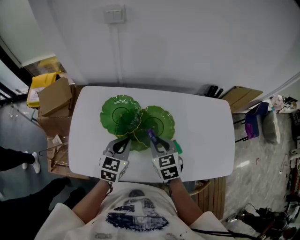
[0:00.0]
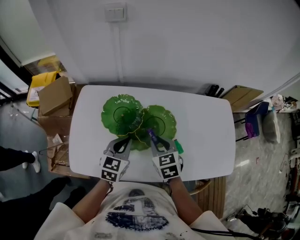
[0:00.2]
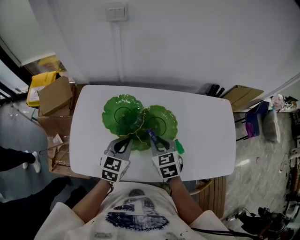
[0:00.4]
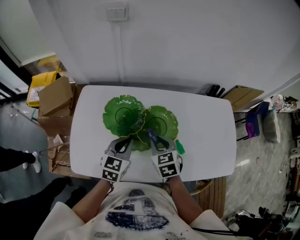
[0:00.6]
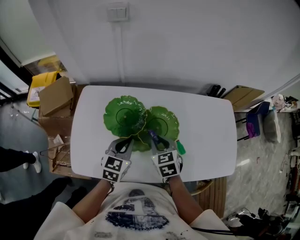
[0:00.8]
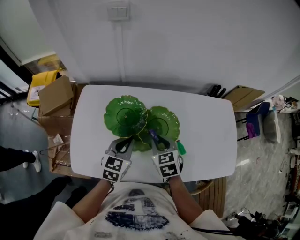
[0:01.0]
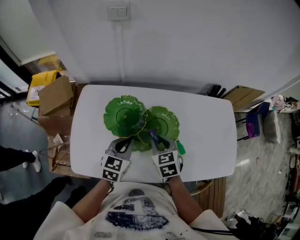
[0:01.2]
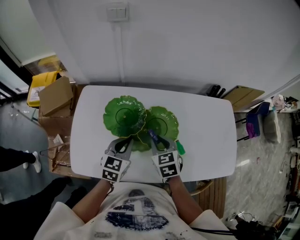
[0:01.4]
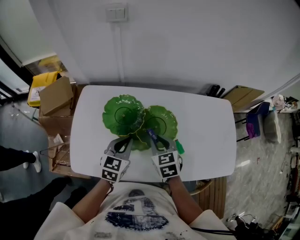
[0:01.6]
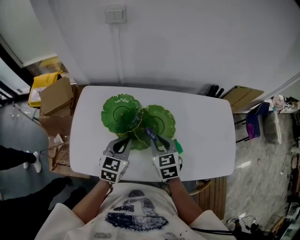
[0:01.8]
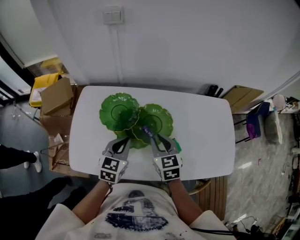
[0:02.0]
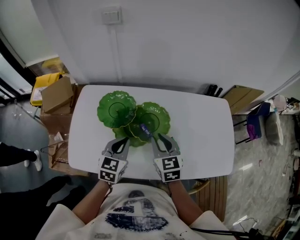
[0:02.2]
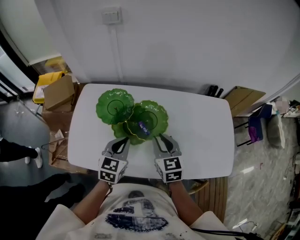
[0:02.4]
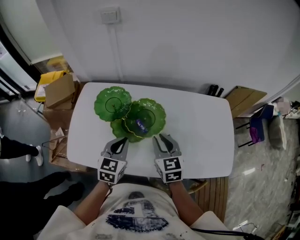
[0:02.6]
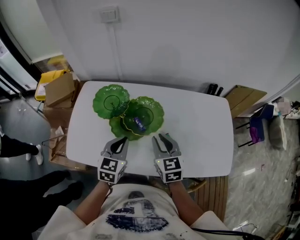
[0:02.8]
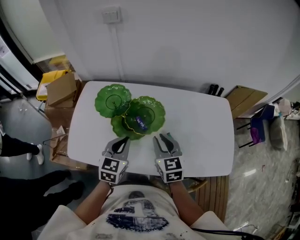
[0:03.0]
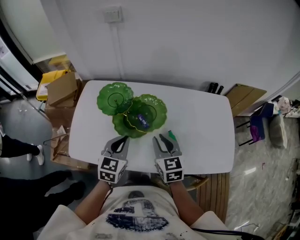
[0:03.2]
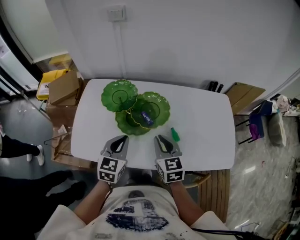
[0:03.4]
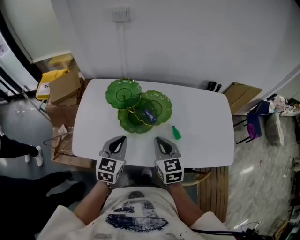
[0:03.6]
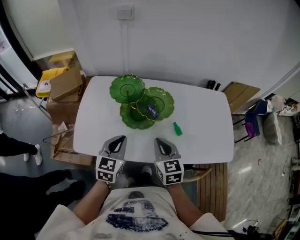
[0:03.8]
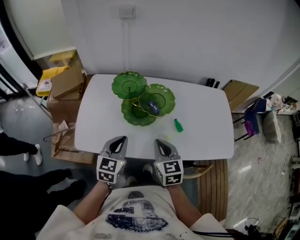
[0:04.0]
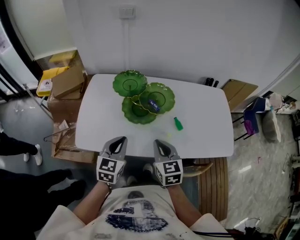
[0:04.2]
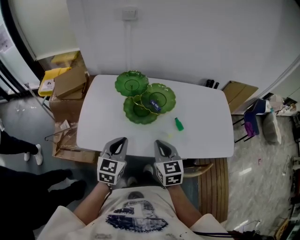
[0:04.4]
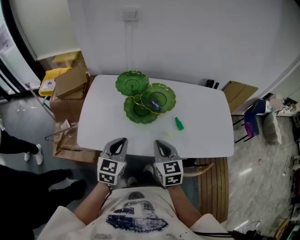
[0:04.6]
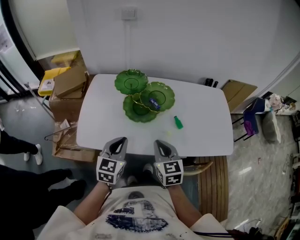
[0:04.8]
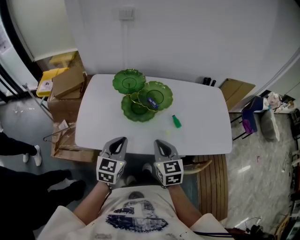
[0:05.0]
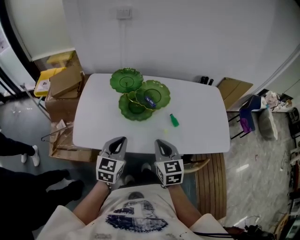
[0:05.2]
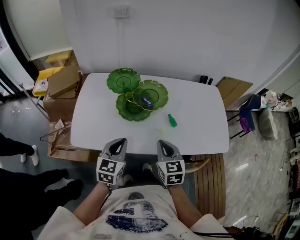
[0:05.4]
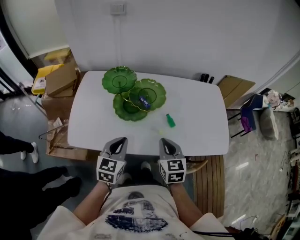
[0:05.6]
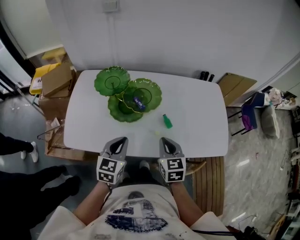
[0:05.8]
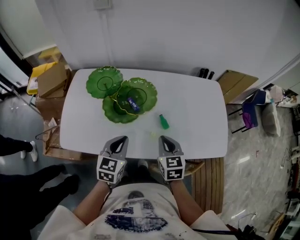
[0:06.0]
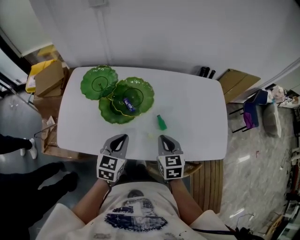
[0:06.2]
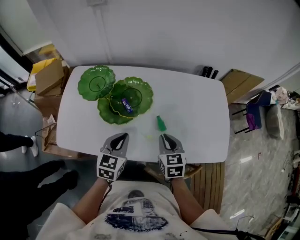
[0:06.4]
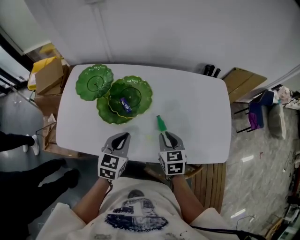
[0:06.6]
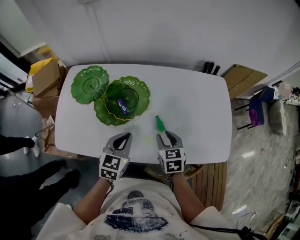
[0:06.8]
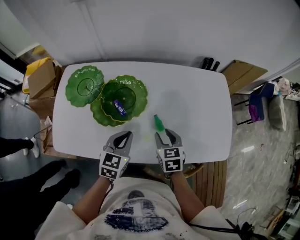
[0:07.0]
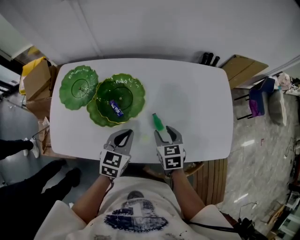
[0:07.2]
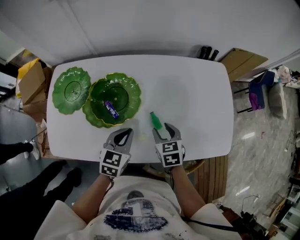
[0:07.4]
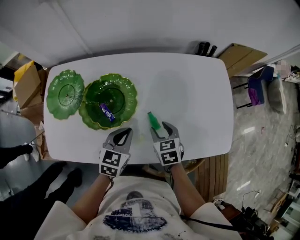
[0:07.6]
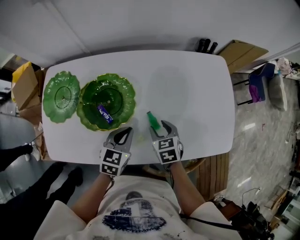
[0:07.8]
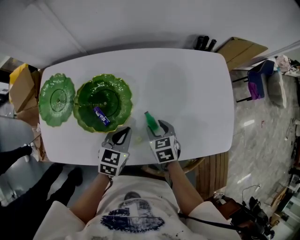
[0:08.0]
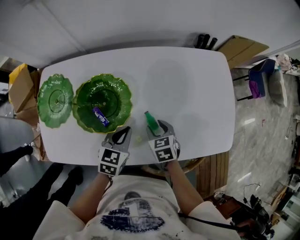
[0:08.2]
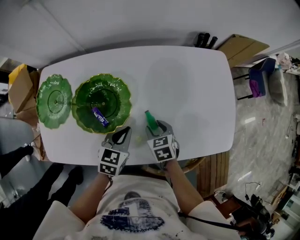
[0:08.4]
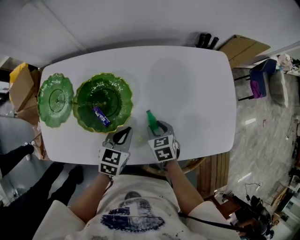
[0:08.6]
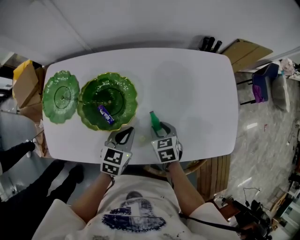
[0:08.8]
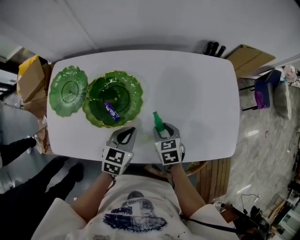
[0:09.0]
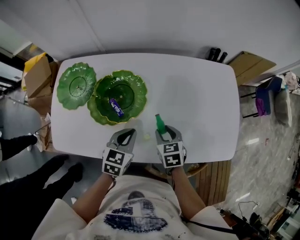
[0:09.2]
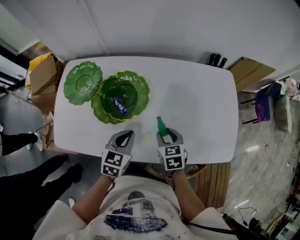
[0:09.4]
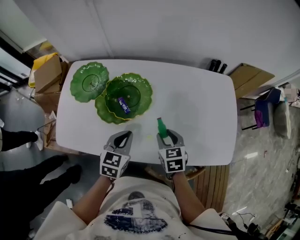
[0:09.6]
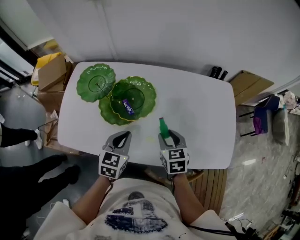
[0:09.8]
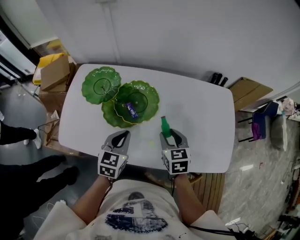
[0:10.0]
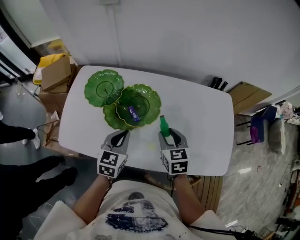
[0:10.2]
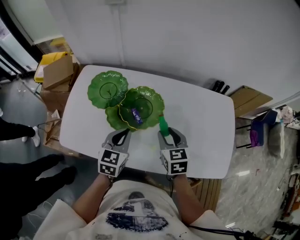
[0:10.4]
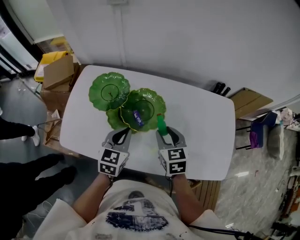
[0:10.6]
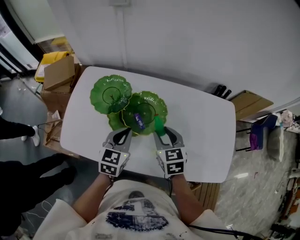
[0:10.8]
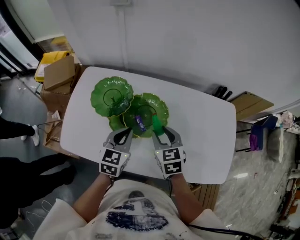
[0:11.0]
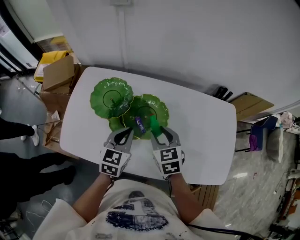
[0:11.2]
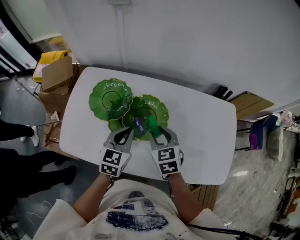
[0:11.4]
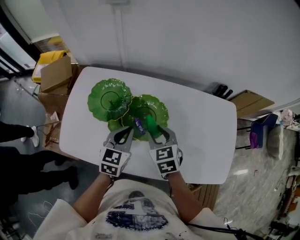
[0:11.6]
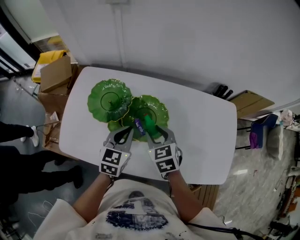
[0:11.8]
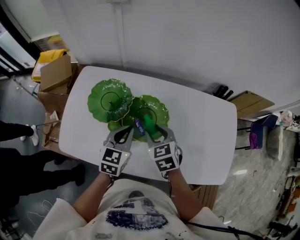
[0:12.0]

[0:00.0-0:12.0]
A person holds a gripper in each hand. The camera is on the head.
0:00.0 to 0:01.6: The grippers make only small movements.
0:01.6 to 0:03.0: The left gripper moves backward and to the right, some 10 cm; the right gripper travels to the right and backward by about 10 cm.
0:03.0 to 0:04.4: Both grippers travel together backward and to the left, approximately 15 cm. The right gripper closes up.
0:04.4 to 0:06.0: The left gripper is displaced to the right and forward by about 15 cm. Meanwhile the right gripper is displaced to the right, forward and downward by approximately 15 cm.
0:06.0 to 0:07.6: The left gripper goes approximately 15 cm forward, downward and to the right. Meanwhile the right gripper is displaced downward and forward by some 15 cm, and opens.
0:07.6 to 0:09.0: The grippers stay close to where they were, moving slightly.
0:09.0 to 0:10.4: The left gripper shifts approximately 15 cm to the left and upward, and turns by roughly 20 degrees; the right gripper shifts roughly 15 cm upward.
0:10.4 to 0:12.0: The right gripper moves to the left and forward, approximately 10 cm, while the left gripper heads forward, covering roughly 5 cm.

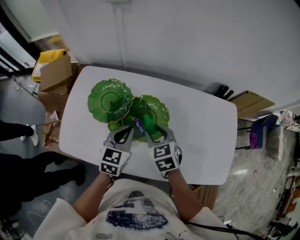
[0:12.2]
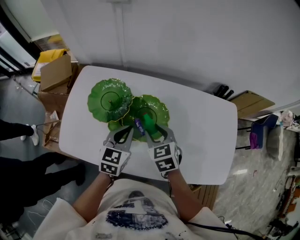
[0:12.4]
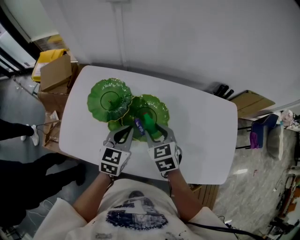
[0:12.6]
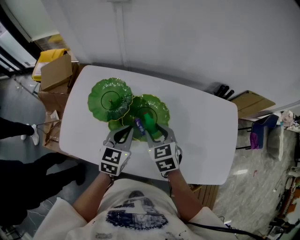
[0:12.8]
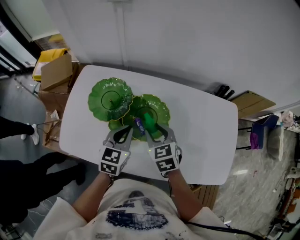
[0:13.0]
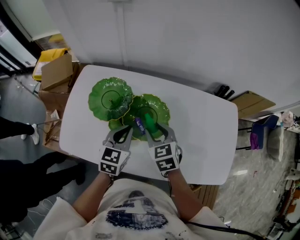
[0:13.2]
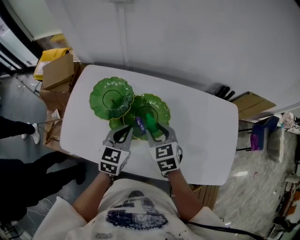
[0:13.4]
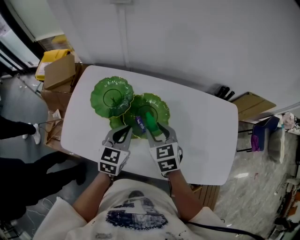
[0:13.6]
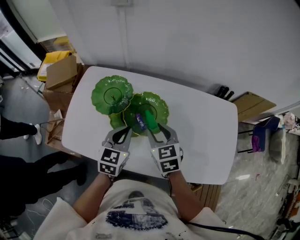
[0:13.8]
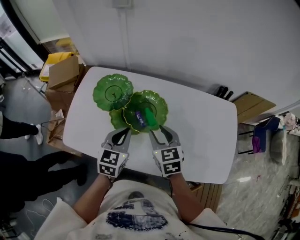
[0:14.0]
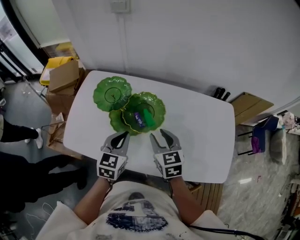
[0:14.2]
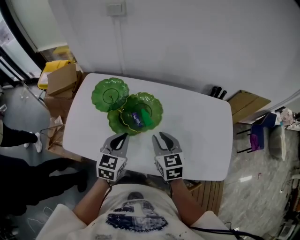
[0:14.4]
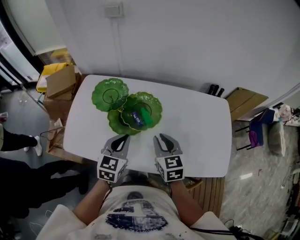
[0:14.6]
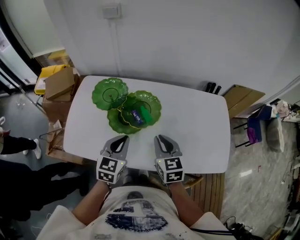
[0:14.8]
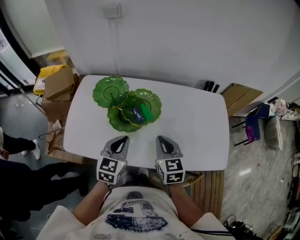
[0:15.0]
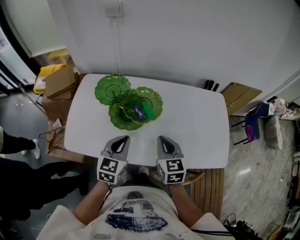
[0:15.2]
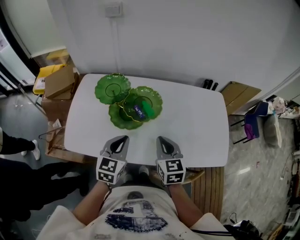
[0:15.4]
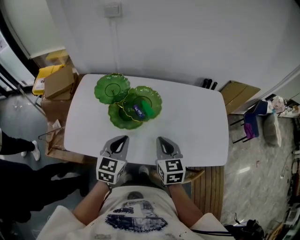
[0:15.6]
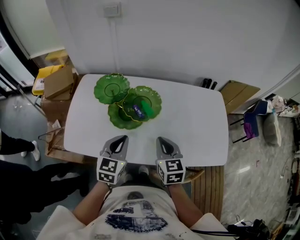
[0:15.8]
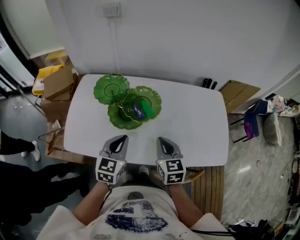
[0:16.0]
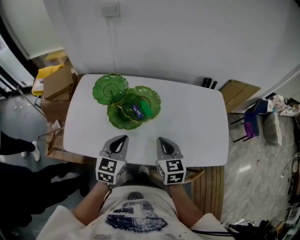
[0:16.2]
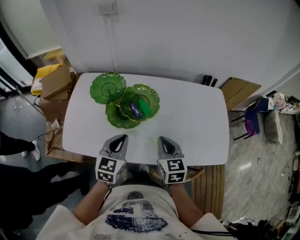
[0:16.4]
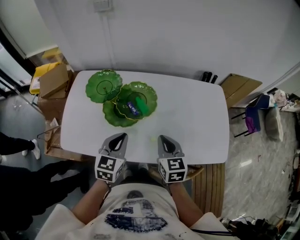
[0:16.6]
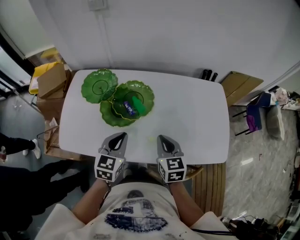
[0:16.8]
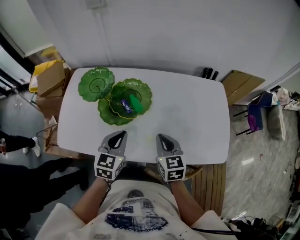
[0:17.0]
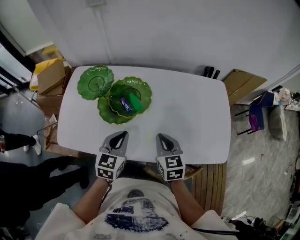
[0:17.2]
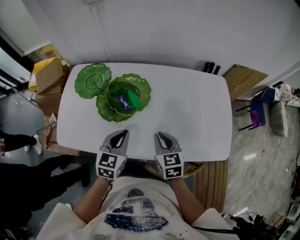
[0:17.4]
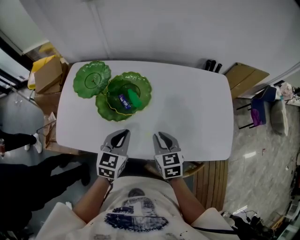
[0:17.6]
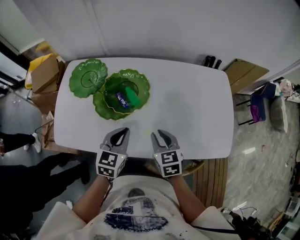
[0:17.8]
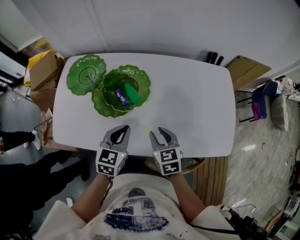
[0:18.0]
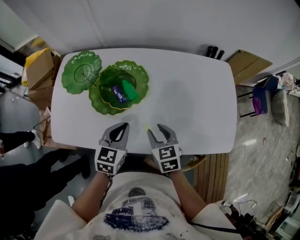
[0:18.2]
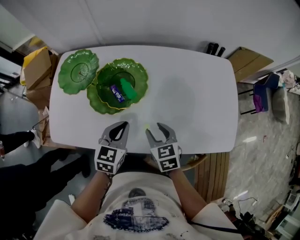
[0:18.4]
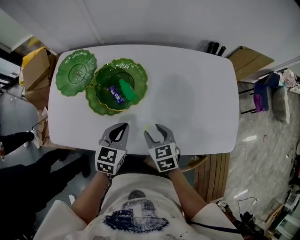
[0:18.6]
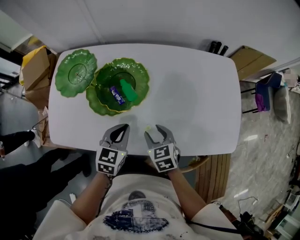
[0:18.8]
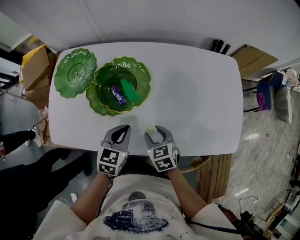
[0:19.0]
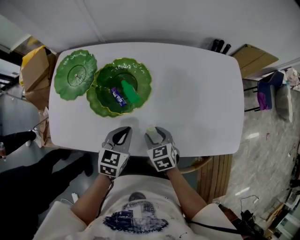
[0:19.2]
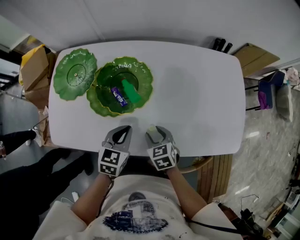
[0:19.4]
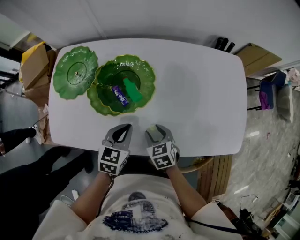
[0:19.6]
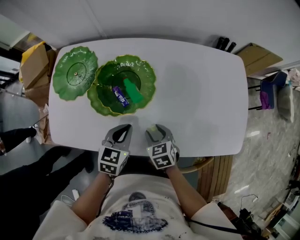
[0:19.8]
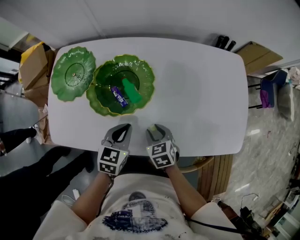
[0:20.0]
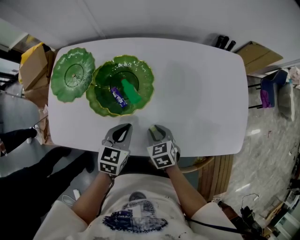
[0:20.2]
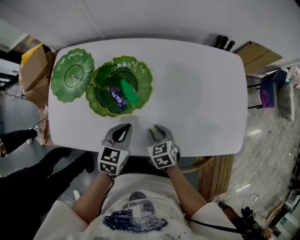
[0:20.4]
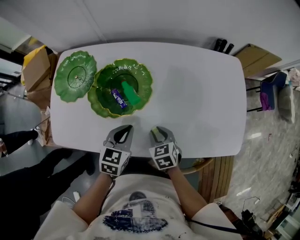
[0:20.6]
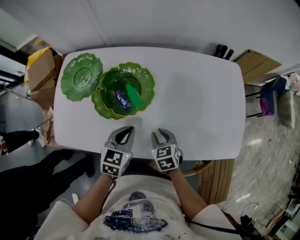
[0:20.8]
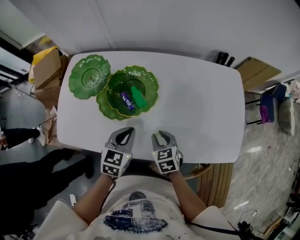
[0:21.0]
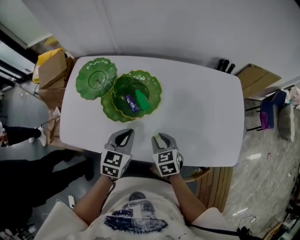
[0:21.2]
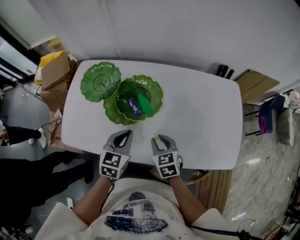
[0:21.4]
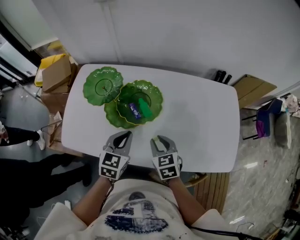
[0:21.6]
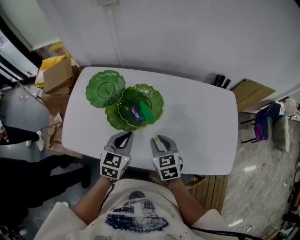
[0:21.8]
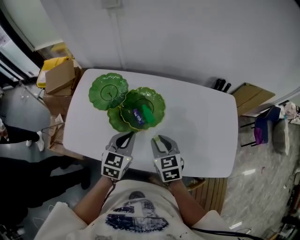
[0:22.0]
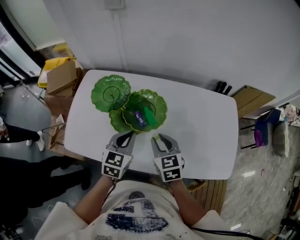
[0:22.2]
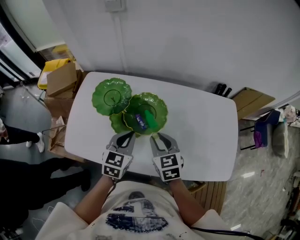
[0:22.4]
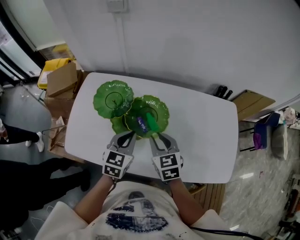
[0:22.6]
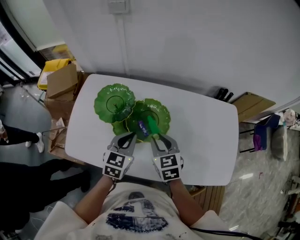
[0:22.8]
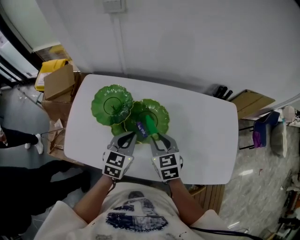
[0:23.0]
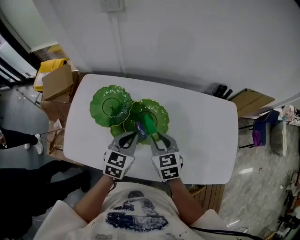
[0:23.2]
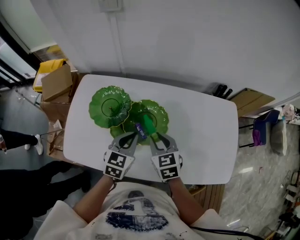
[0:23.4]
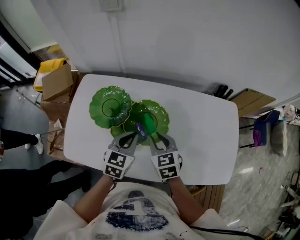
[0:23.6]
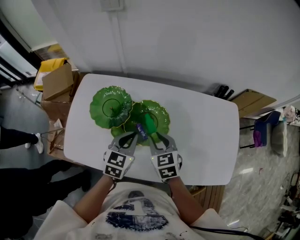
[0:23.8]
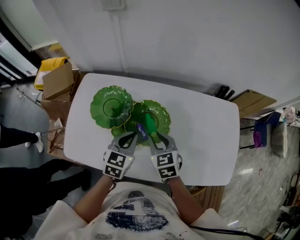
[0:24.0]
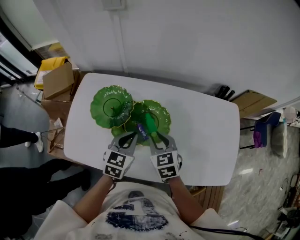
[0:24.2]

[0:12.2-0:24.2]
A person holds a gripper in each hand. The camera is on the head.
0:12.2 to 0:13.8: The grippers stay close to where they were, moving slightly.
0:13.8 to 0:15.2: The two grippers go about 10 cm backward. The right gripper closes its fingers.
0:15.2 to 0:16.6: The grippers make only small movements.
0:16.6 to 0:18.2: The right gripper travels downward by roughly 10 cm, and opens its fingers. Meanwhile the left gripper shifts some 10 cm downward and to the right.
0:18.2 to 0:19.8: The right gripper shifts roughly 10 cm downward. Meanwhile the left gripper heads downward, covering approximately 5 cm.
0:19.8 to 0:21.2: Both grippers travel together upward, about 5 cm.
0:21.2 to 0:22.6: The left gripper goes about 10 cm forward and upward. The right gripper shifts about 15 cm upward and forward.
0:22.6 to 0:24.2: The grippers move only a little.
